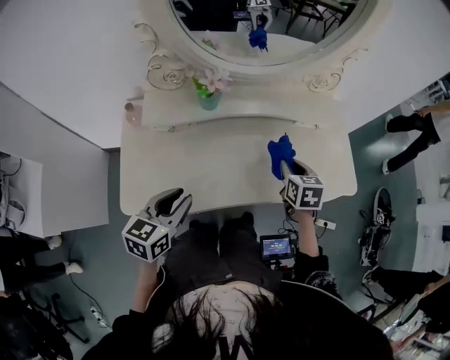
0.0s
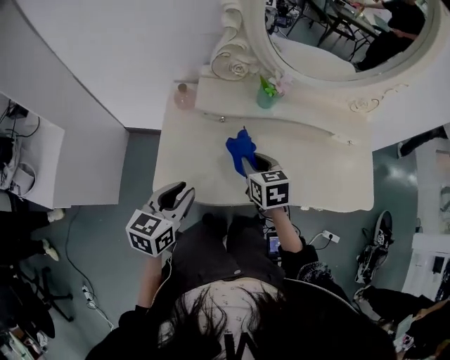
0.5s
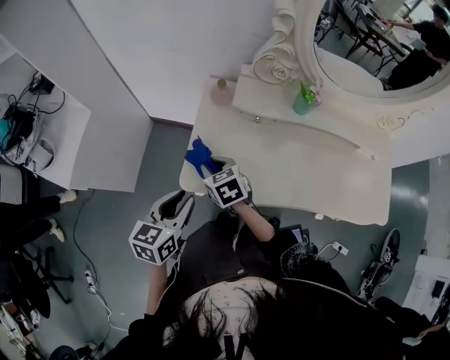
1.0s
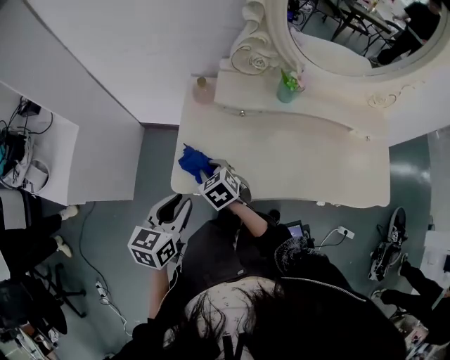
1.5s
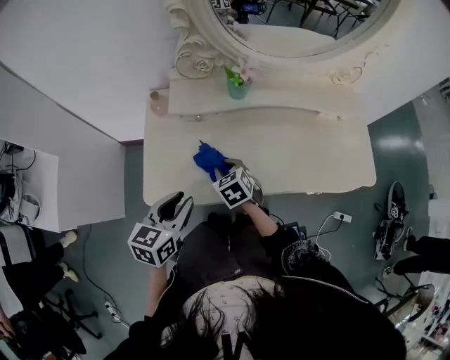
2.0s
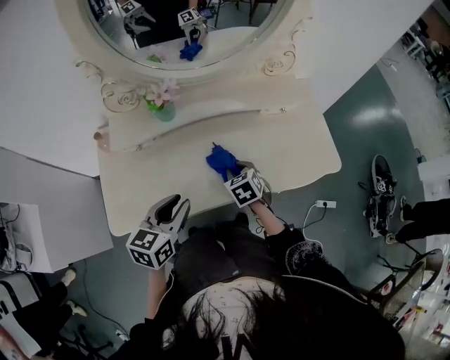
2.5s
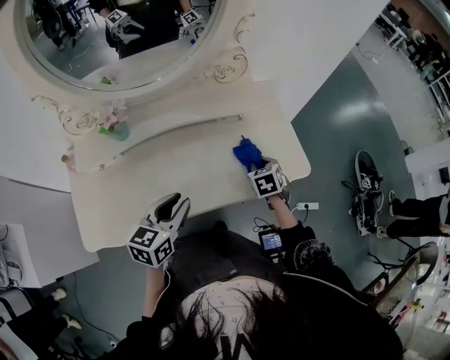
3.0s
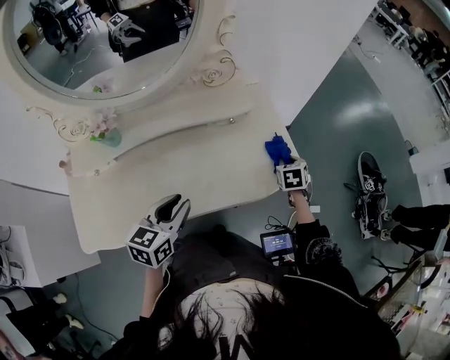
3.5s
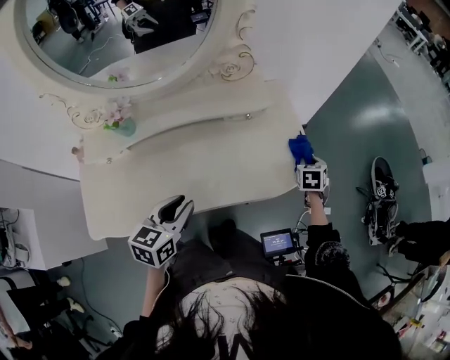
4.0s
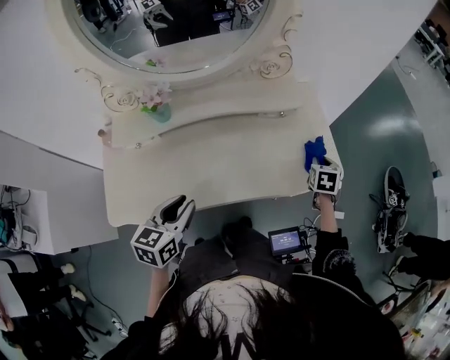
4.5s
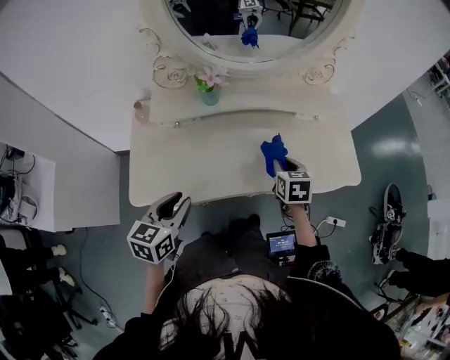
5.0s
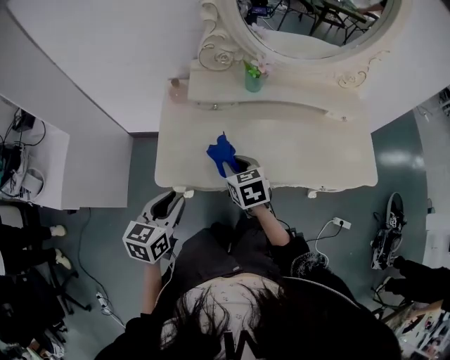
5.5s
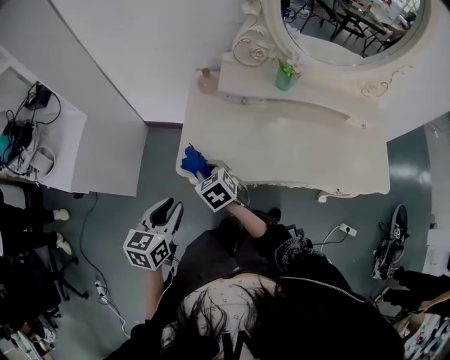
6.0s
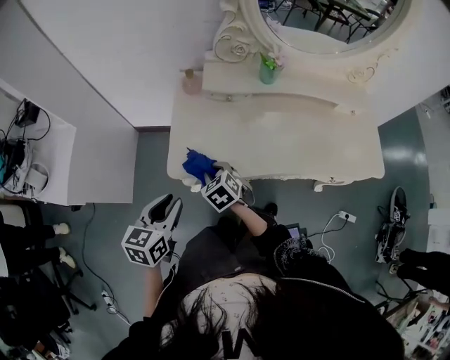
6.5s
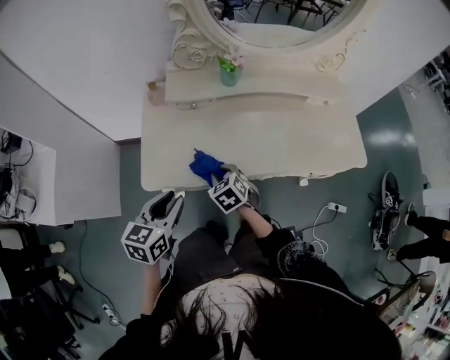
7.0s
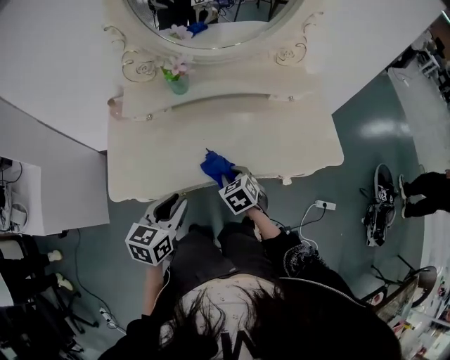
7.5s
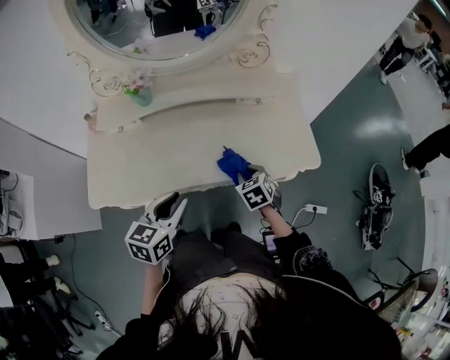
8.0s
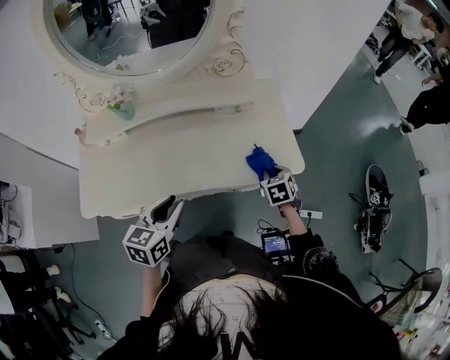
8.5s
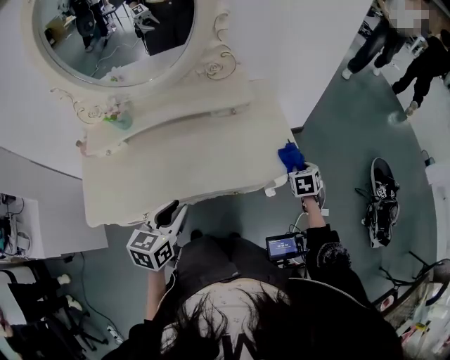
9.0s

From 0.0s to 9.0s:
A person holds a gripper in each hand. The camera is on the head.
From 0.0s to 2.0s: The right gripper swivels some 30 degrees.
From 2.0s to 4.5s: The right gripper shifts by some 60 cm, and rotates some 50 degrees.
From 4.5s to 7.0s: The right gripper shifts by about 60 cm, and swivels roughly 50 degrees. The left gripper ends up some 25 cm from where it was.
From 7.0s to 9.0s: The right gripper ends up approximately 70 cm from where it was, and swivels some 40 degrees; the left gripper ends up some 35 cm from where it was.

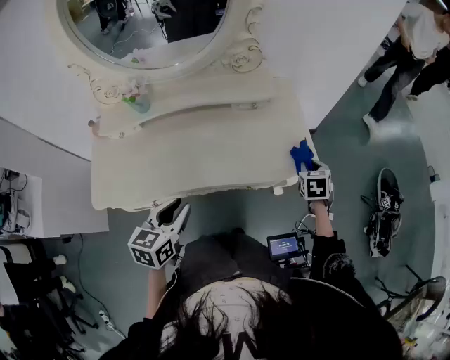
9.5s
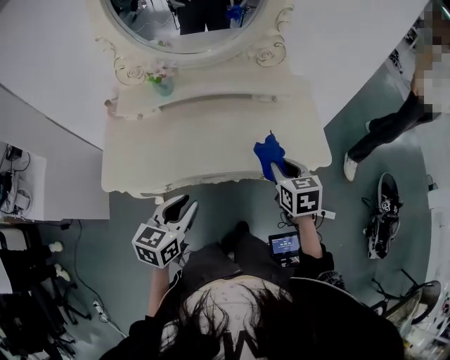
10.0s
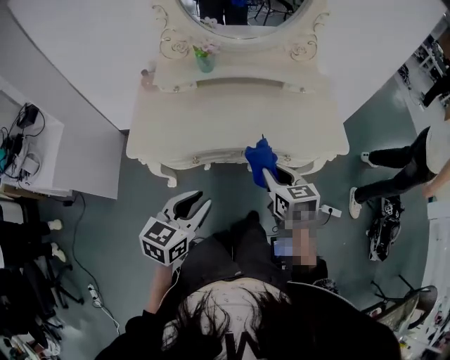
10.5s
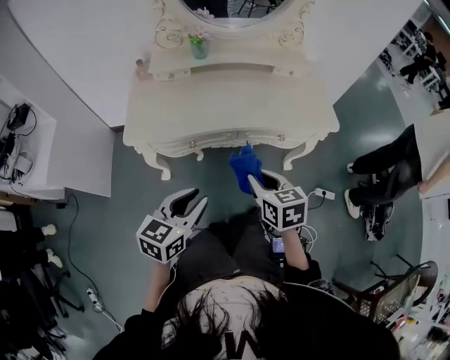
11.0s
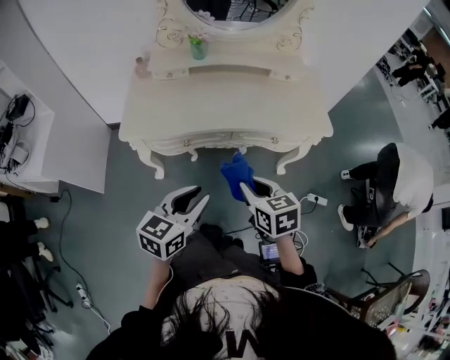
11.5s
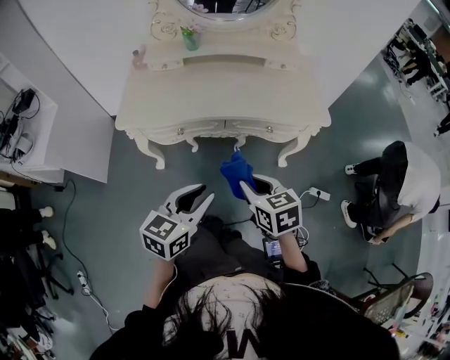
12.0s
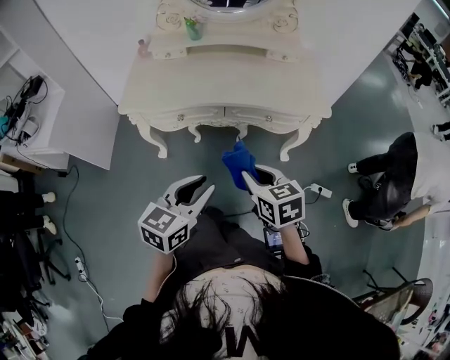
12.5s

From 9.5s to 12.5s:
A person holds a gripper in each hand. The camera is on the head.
From 9.5s to 11.0s: The right gripper moves to the left and backward, approximately 50 cm, and rotates about 30 degrees; the left gripper shifts roughly 25 cm backward and to the left.
From 11.0s to 12.5s: Both grippers move to the right and backward, about 15 cm.

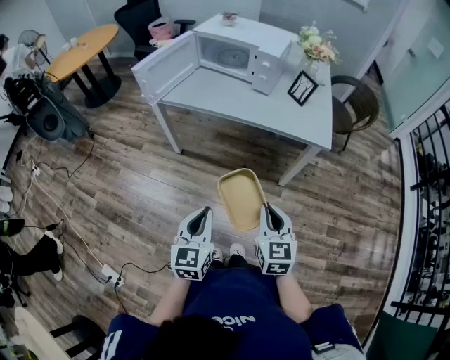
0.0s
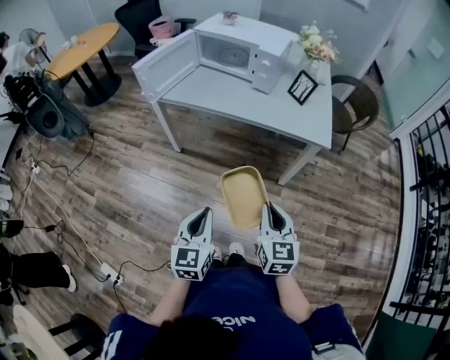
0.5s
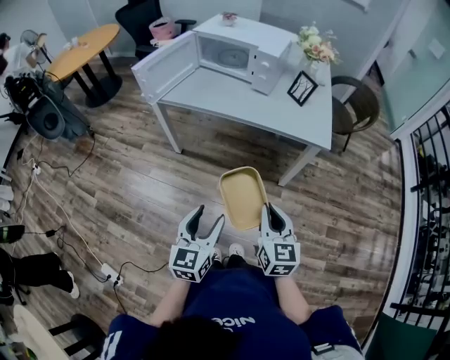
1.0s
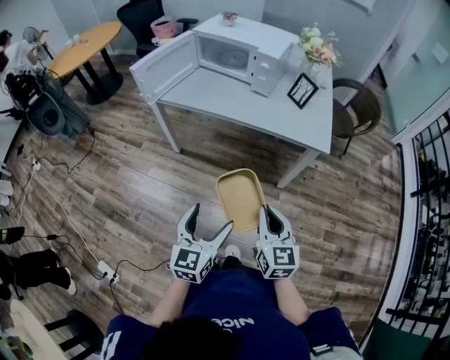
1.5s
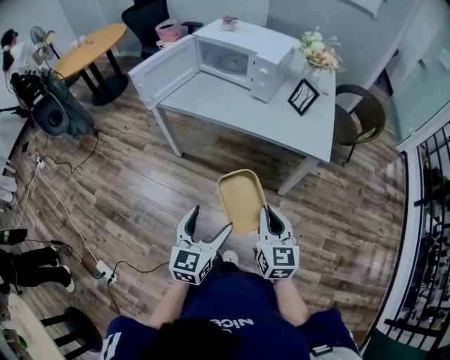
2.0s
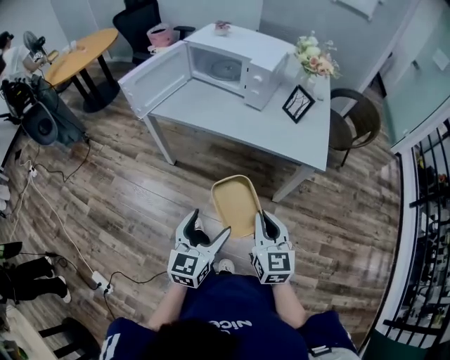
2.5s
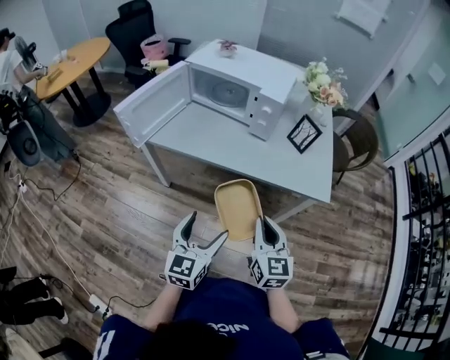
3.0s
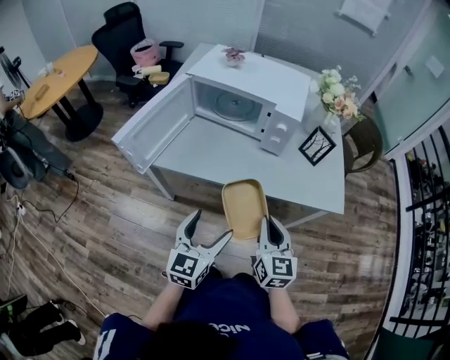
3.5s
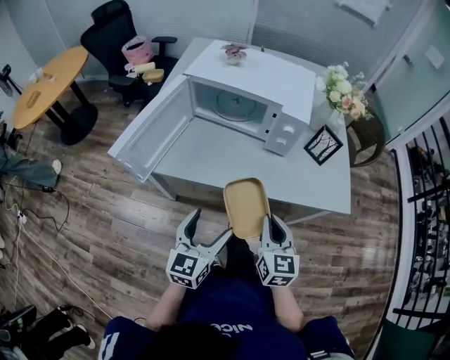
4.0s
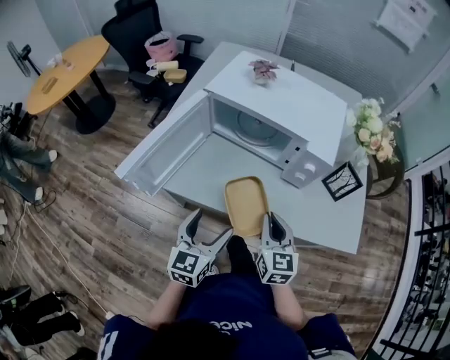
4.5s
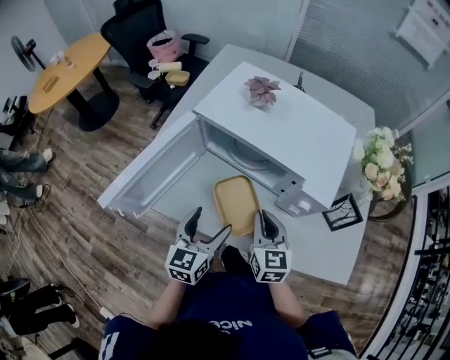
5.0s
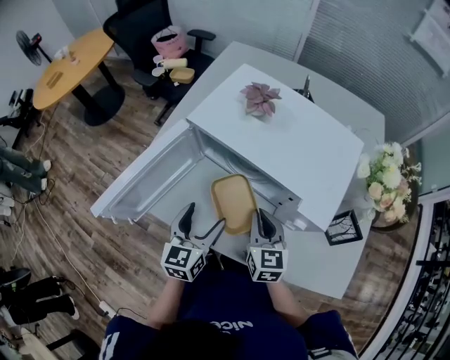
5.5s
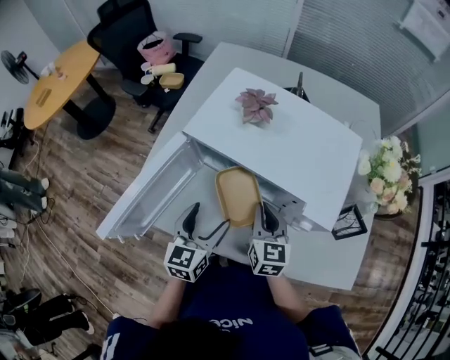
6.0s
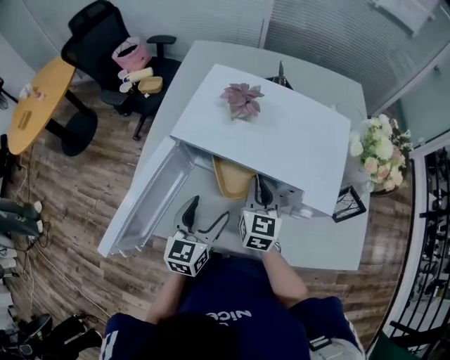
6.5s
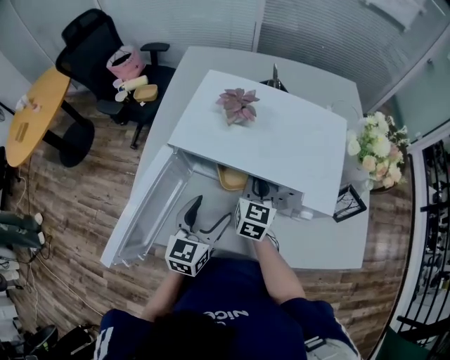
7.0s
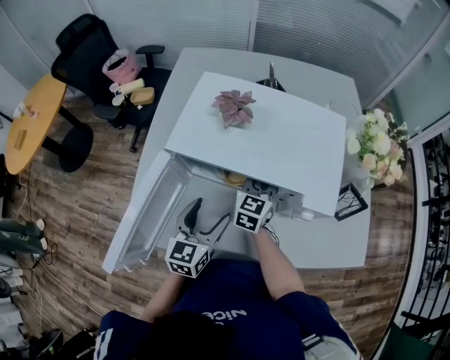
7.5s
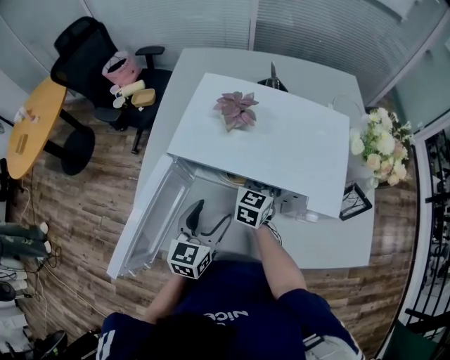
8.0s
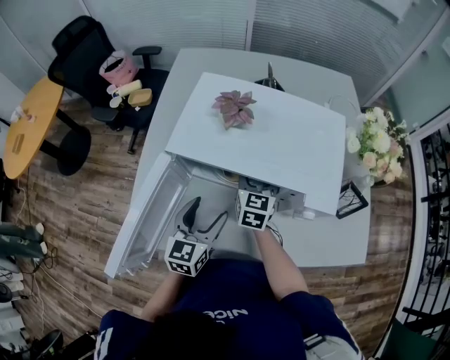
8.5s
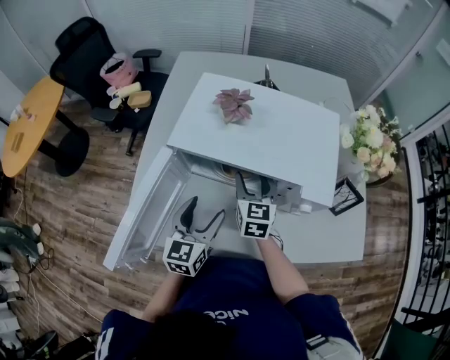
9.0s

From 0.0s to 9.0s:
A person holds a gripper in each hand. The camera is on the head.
From 0.0s to 2.0s: The right gripper shifts by about 5 cm. The left gripper moves to the right, roughly 5 cm, and opens up.
From 2.0s to 4.5s: The pair of grippers is taken forward and to the left, roughly 40 cm.
From 4.5s to 7.0s: Both grippers move forward, some 25 cm.
From 7.0s to 9.0s: The right gripper opens.

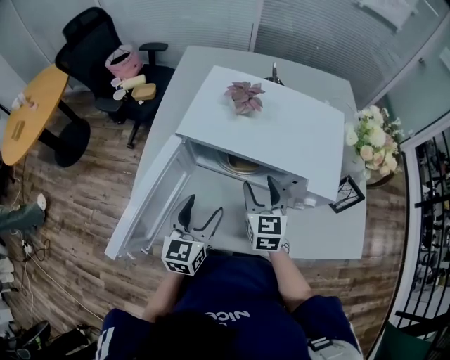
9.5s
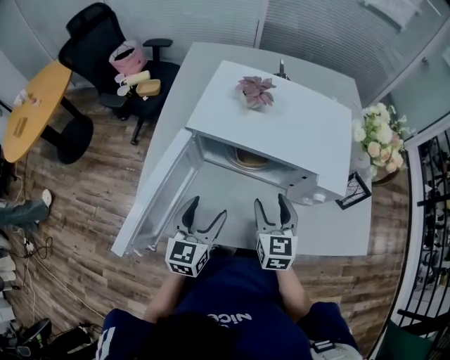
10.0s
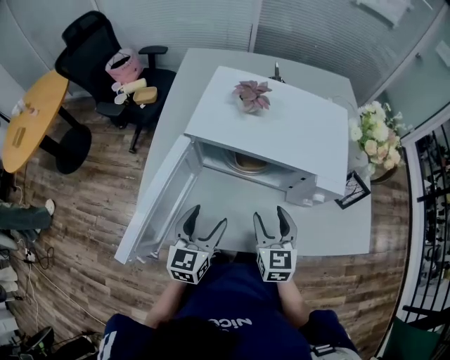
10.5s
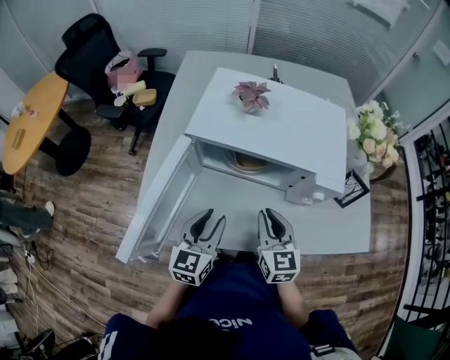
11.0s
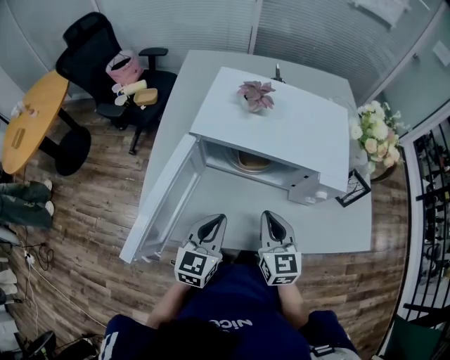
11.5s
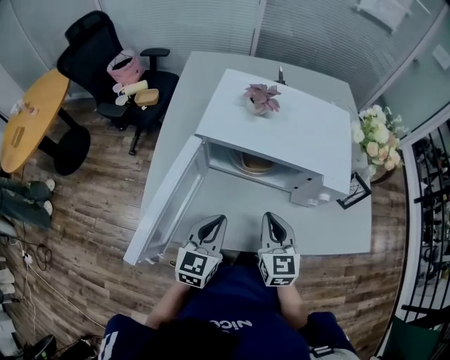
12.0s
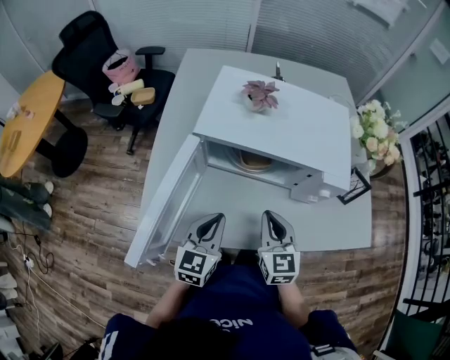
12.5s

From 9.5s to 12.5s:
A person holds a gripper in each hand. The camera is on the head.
From 9.5s to 11.0s: The right gripper shifts about 10 cm backward, and closes its fingers; the left gripper closes up.
From 11.0s to 12.5s: The left gripper closes.

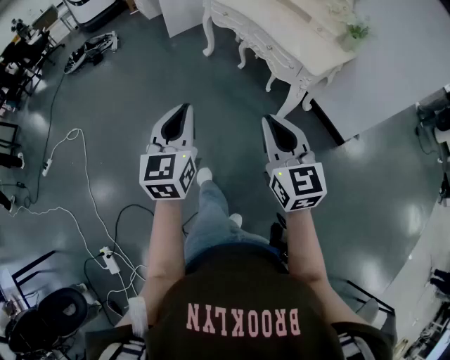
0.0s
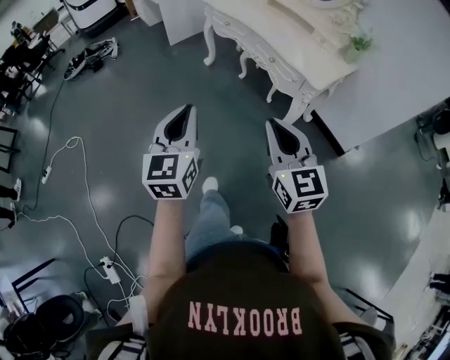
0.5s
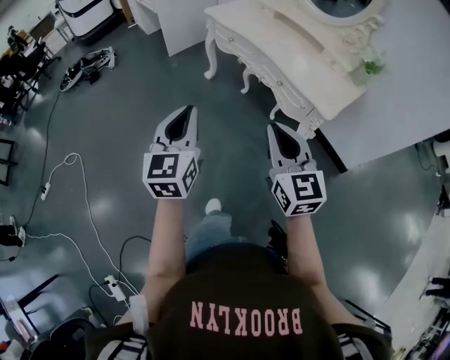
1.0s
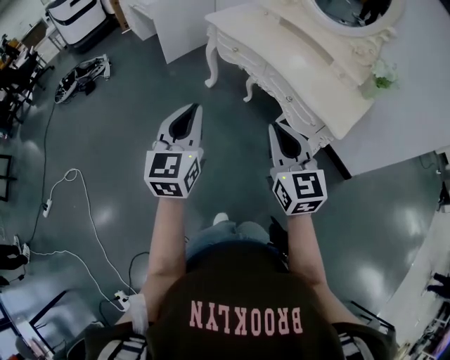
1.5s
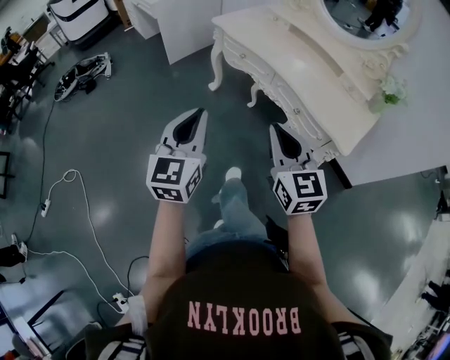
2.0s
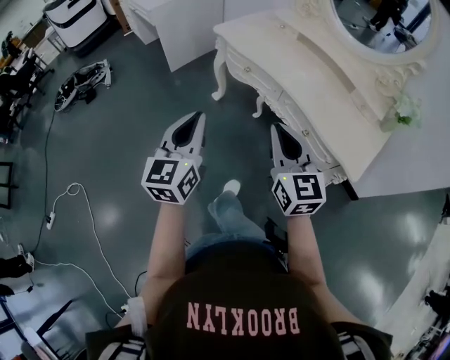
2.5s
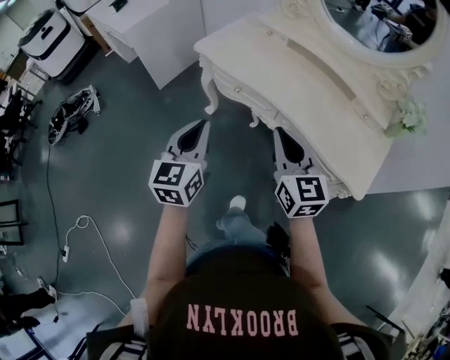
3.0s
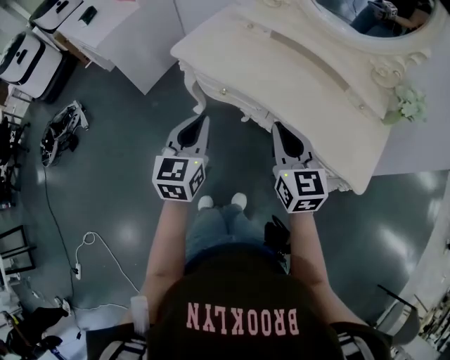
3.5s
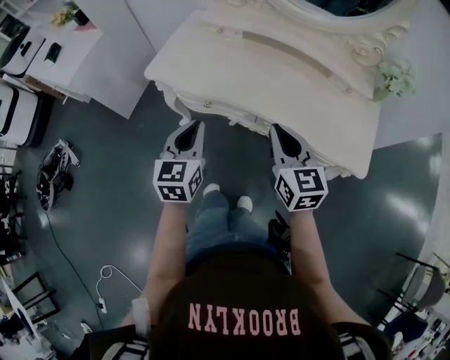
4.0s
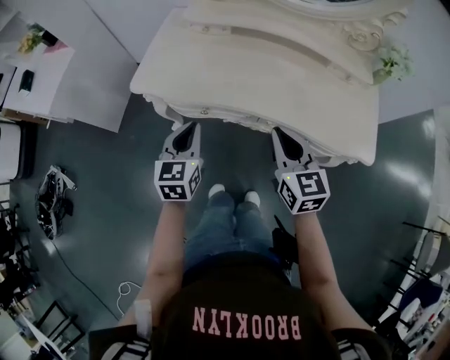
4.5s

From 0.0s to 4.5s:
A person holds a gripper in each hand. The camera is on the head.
From 0.0s to 2.0s: The grippers both shift forward by about 35 cm.
From 2.0s to 4.5s: The left gripper changes place by roughly 50 cm, and rotates about 40 degrees, while the right gripper ends up about 40 cm from where it was, and turns by approximately 40 degrees.
